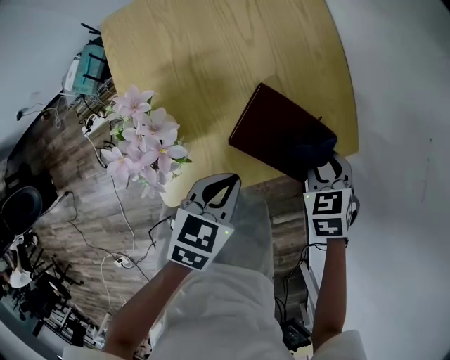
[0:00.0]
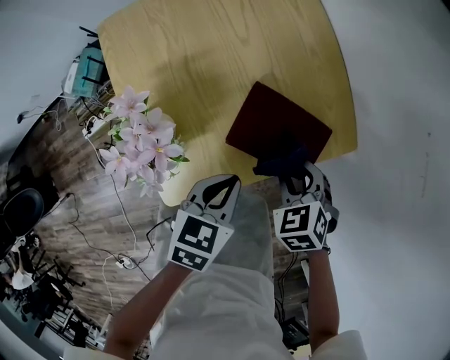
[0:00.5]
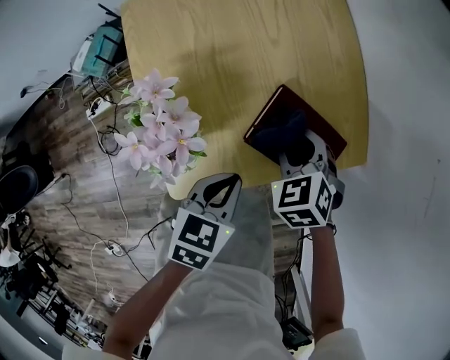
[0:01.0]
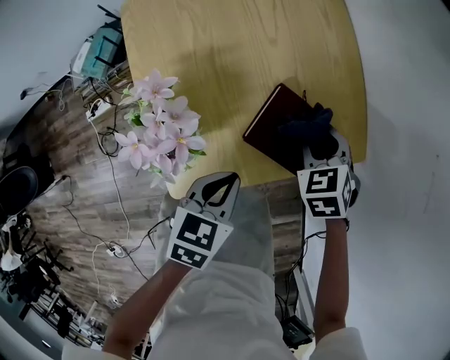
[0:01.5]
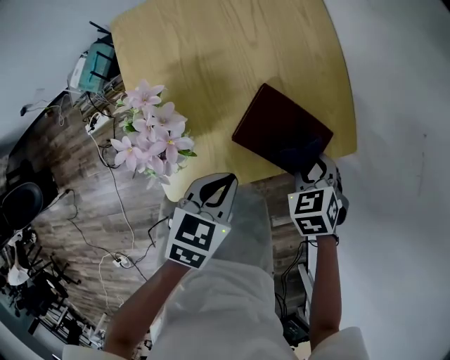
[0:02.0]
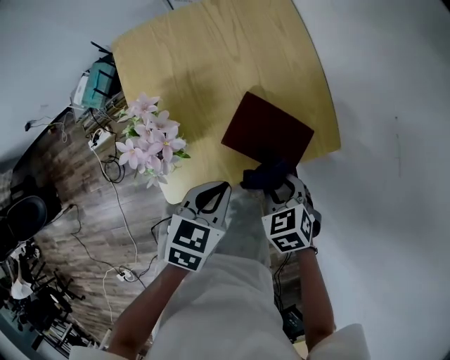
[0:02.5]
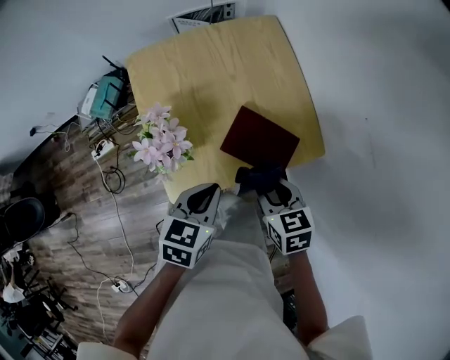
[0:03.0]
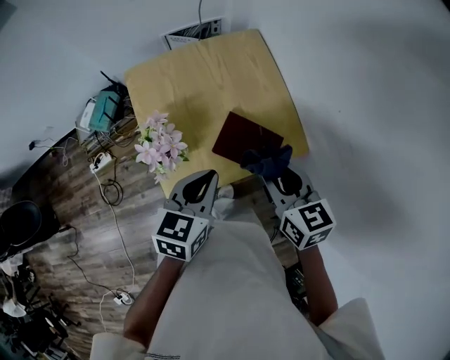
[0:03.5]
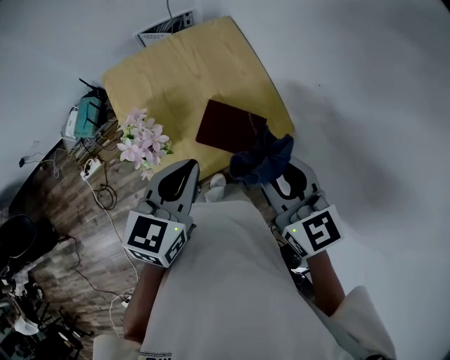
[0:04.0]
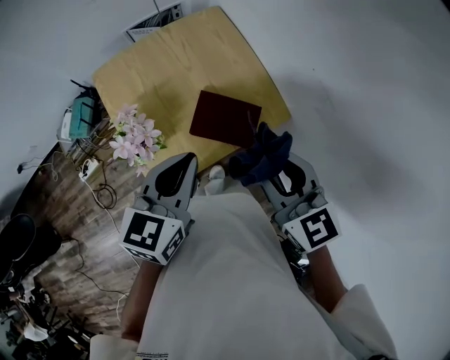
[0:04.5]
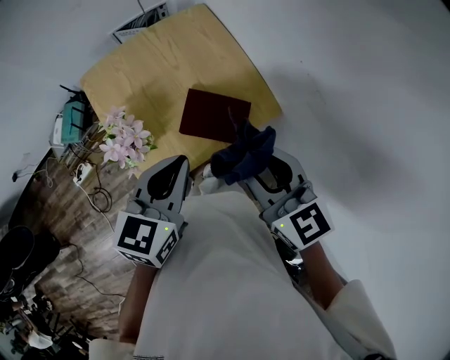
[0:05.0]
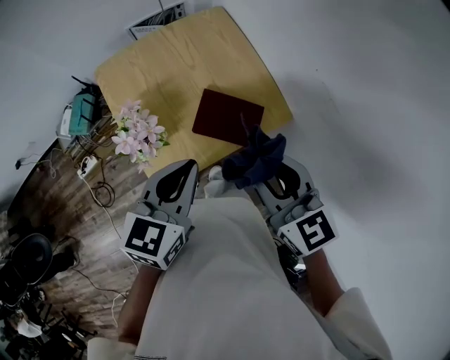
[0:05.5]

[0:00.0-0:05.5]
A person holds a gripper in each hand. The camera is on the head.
0:00.0 to 0:02.0: The right gripper reaches about 15 cm to the left, then returns.
0:02.0 to 0:03.5: Both grippers travel together upward, some 20 cm. The right gripper tips its fingers upward by approximately 40 degrees.
0:03.5 to 0:05.5: The left gripper moves some 5 cm. Meanwhile the right gripper shifts roughly 10 cm upward and backward.

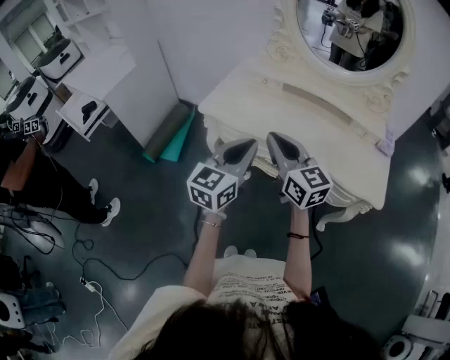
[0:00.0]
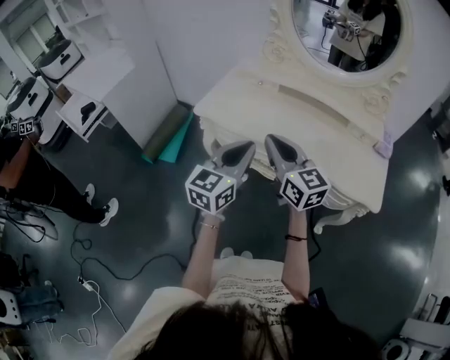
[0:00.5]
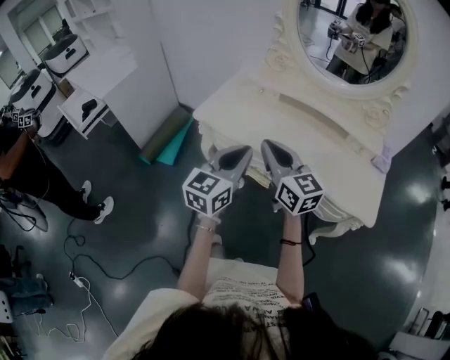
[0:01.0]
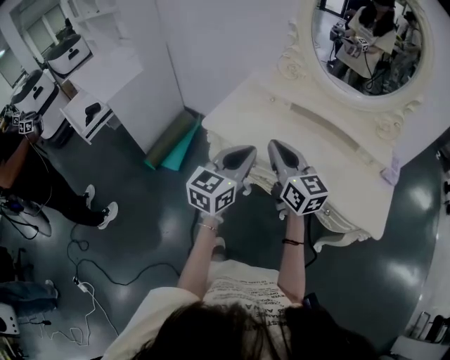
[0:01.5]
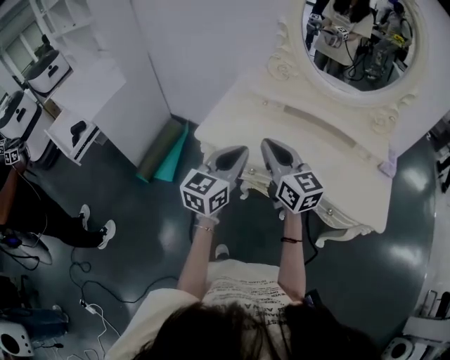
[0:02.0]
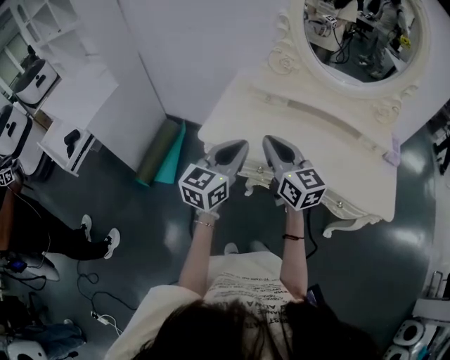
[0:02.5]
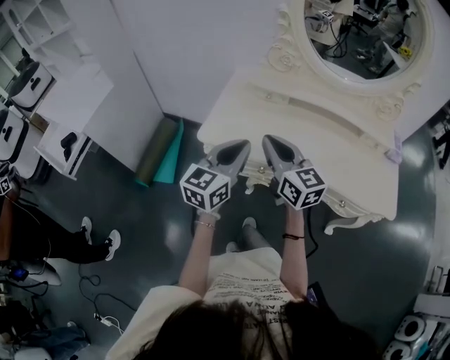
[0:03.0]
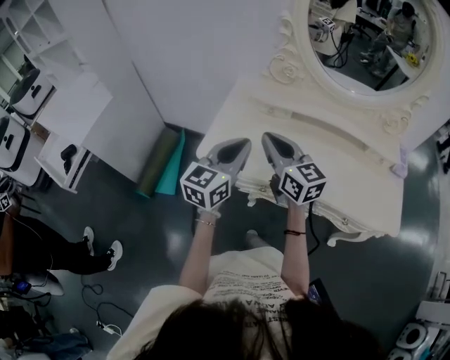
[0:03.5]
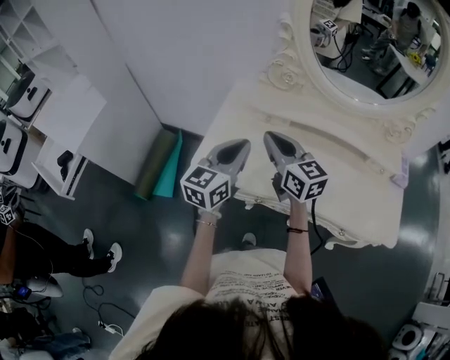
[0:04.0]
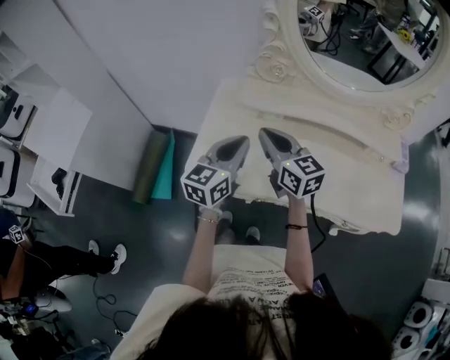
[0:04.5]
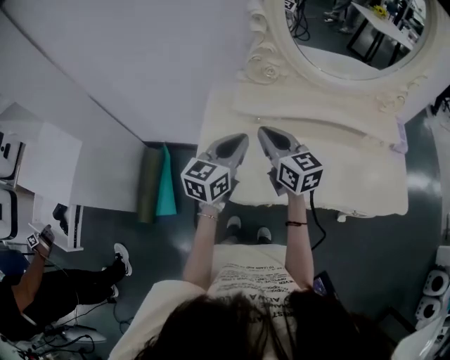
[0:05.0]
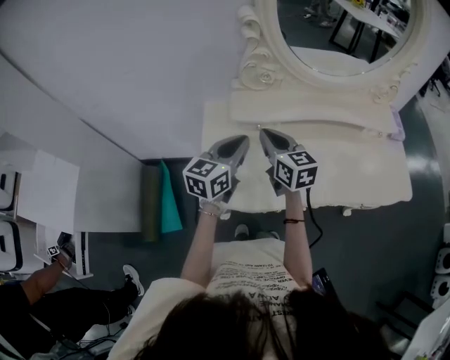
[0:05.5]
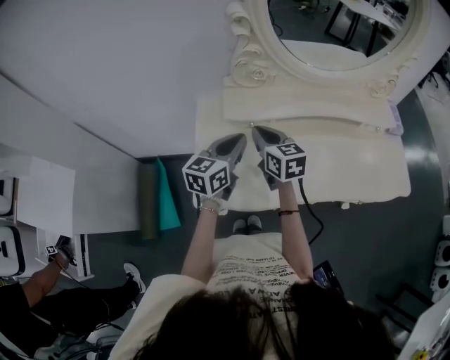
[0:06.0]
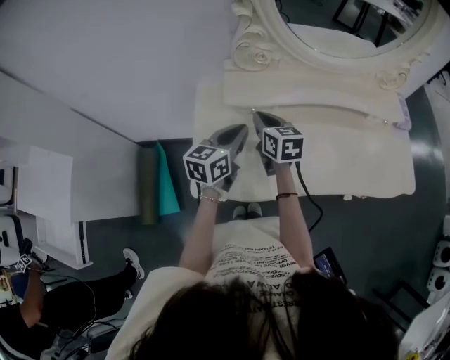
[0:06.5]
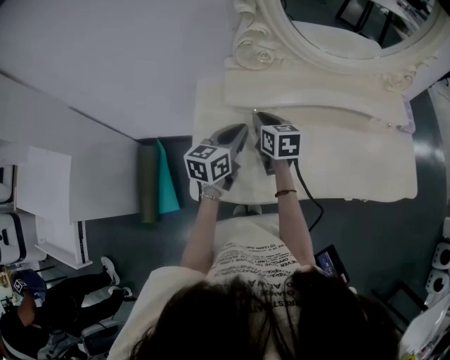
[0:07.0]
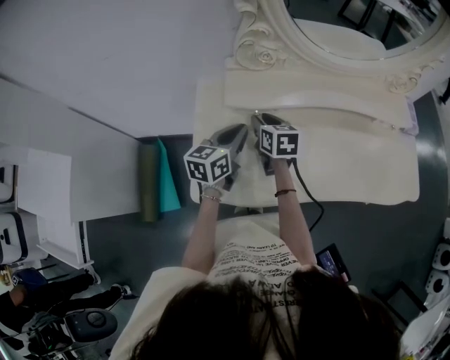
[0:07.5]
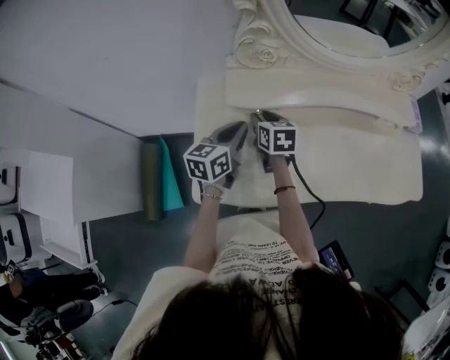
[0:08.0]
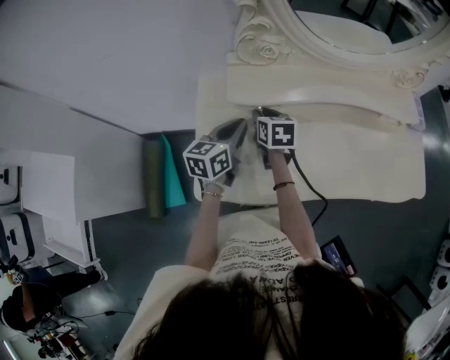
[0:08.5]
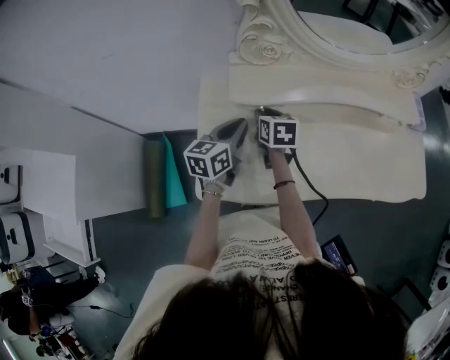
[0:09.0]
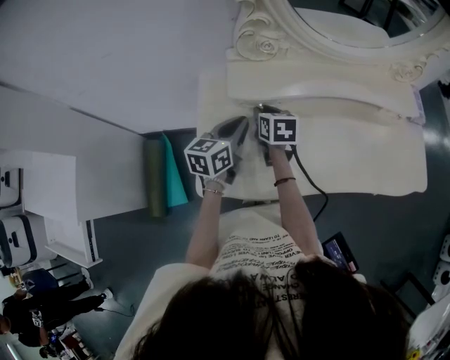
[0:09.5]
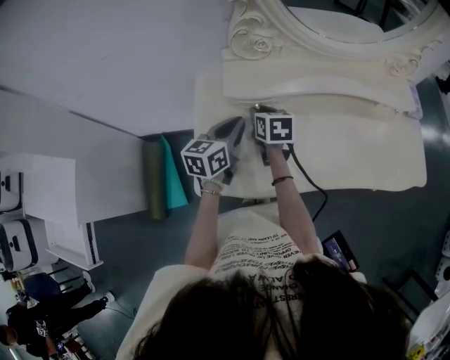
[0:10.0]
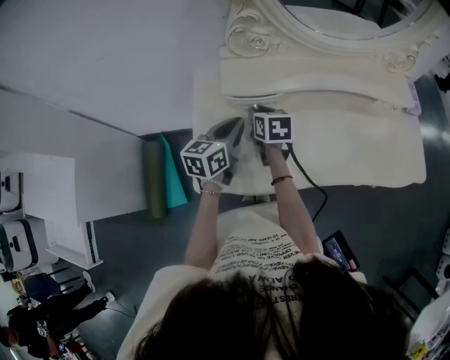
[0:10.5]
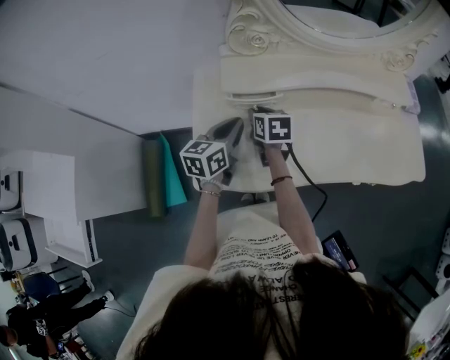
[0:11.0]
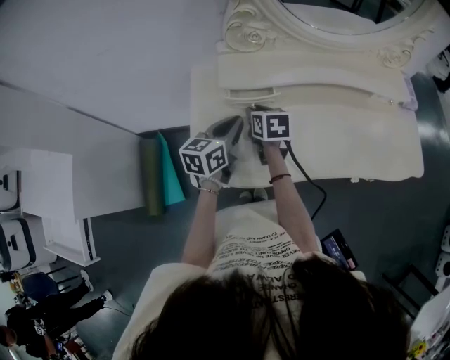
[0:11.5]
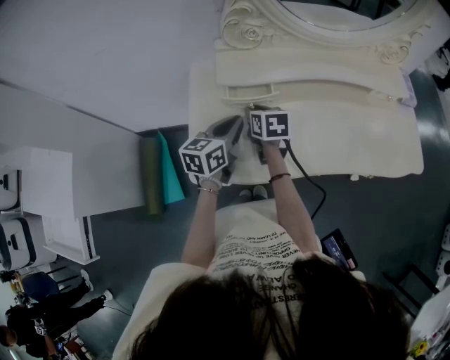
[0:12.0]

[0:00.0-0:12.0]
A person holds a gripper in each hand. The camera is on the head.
0:00.0 to 0:02.0: Both grippers move forward, roughly 10 cm.
0:02.0 to 0:04.0: Both grippers travel together forward, roughly 20 cm.
0:04.0 to 0:06.0: The grippers both shift forward and downward by some 15 cm. The right gripper swivels about 30 degrees; the left gripper turns by some 20 degrees.
0:06.0 to 0:08.0: The left gripper moves downward, approximately 5 cm. Meanwhile the right gripper shifts approximately 10 cm downward and forward, and opens up.
0:08.0 to 0:12.0: The grippers move only a little.

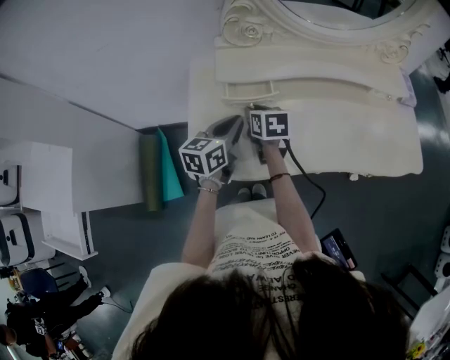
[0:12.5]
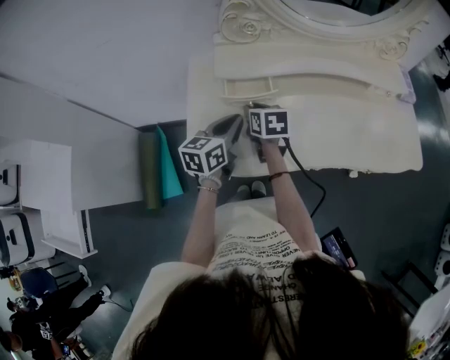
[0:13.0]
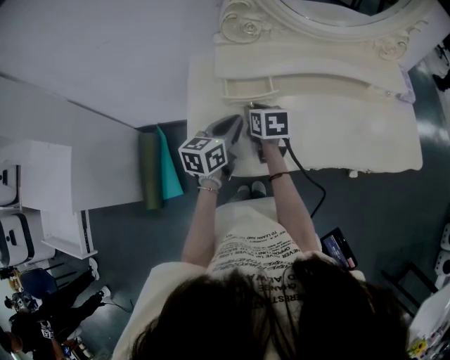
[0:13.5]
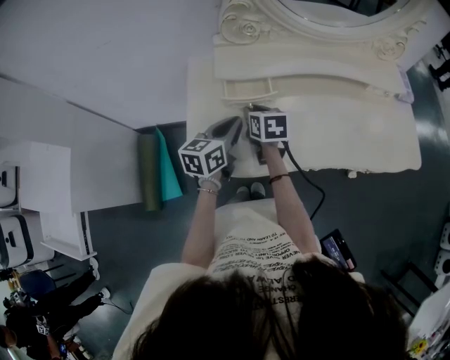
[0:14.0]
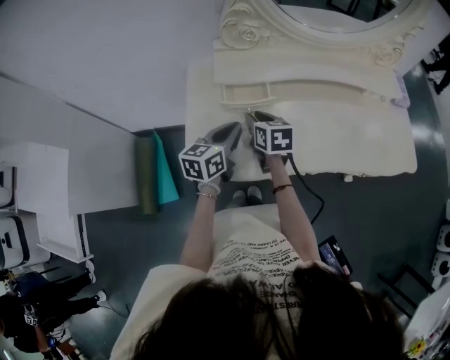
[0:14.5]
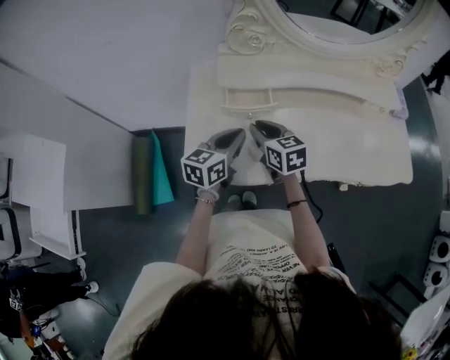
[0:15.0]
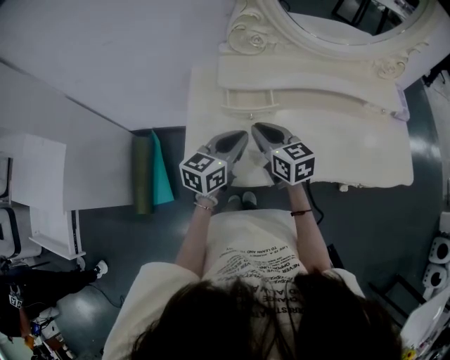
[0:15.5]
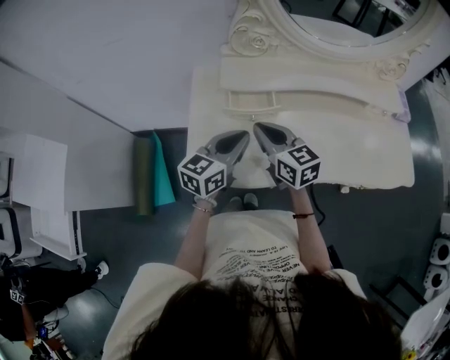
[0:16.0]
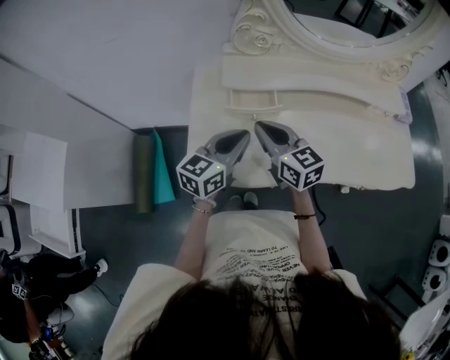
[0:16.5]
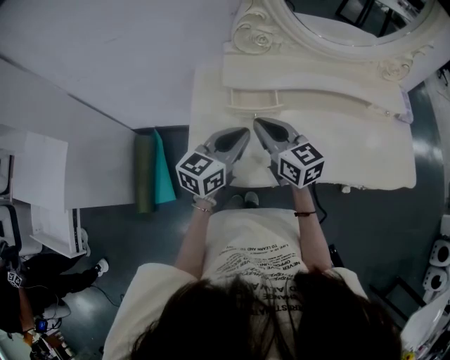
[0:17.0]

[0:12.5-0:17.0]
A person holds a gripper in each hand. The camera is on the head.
0:12.5 to 0:14.5: The grippers move only a little.
0:14.5 to 0:17.0: The right gripper shifts approximately 10 cm upward, swivels roughly 30 degrees, and closes. The left gripper travels upward by about 5 cm.

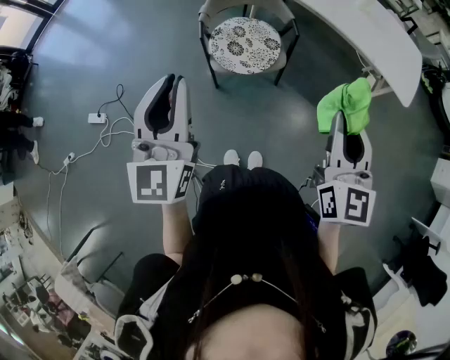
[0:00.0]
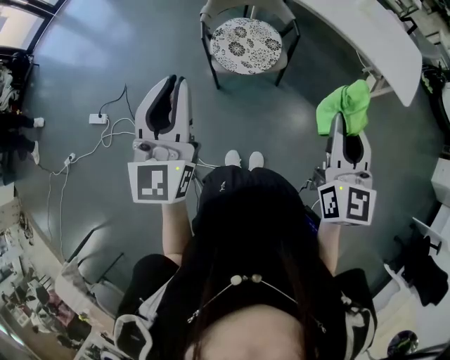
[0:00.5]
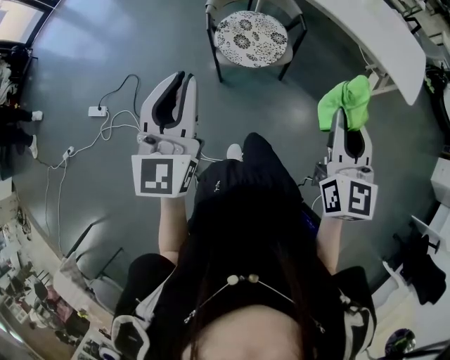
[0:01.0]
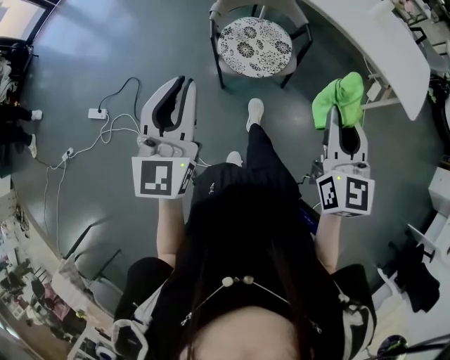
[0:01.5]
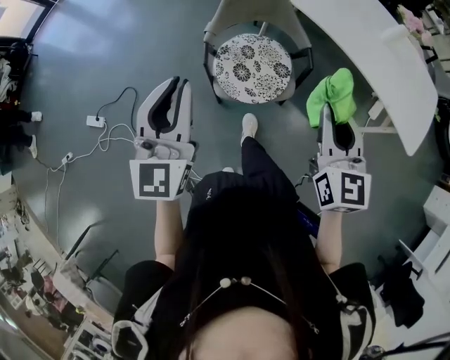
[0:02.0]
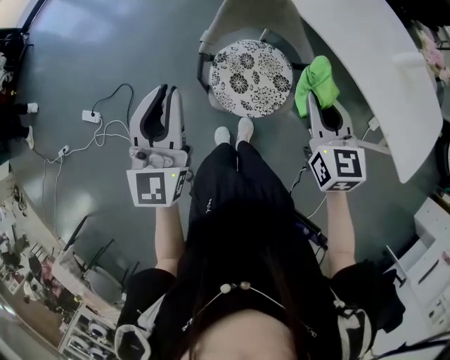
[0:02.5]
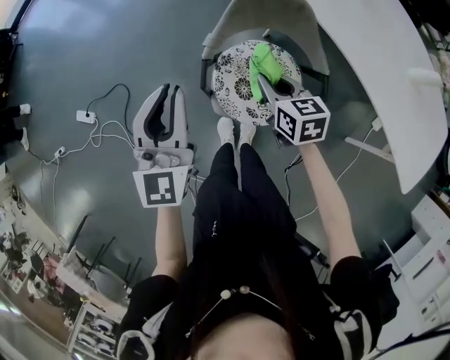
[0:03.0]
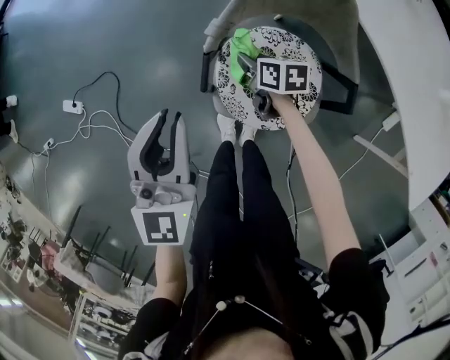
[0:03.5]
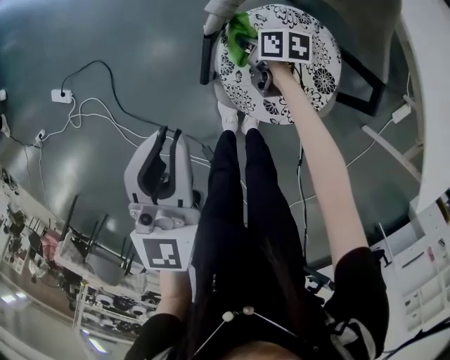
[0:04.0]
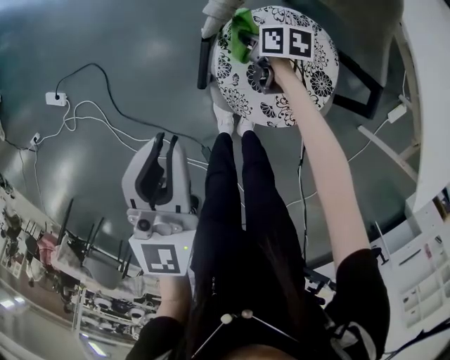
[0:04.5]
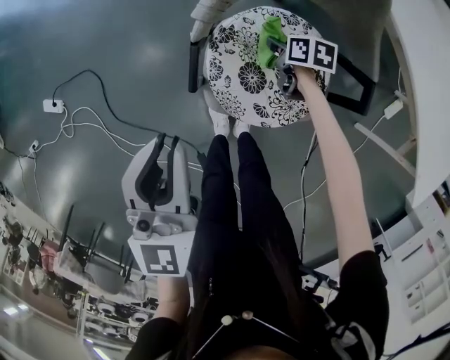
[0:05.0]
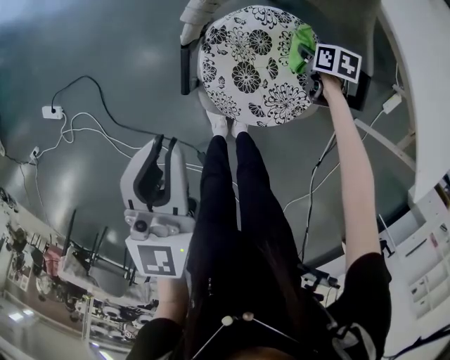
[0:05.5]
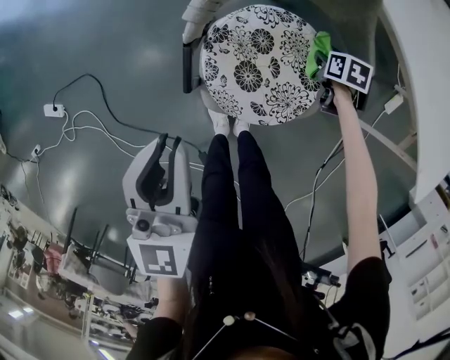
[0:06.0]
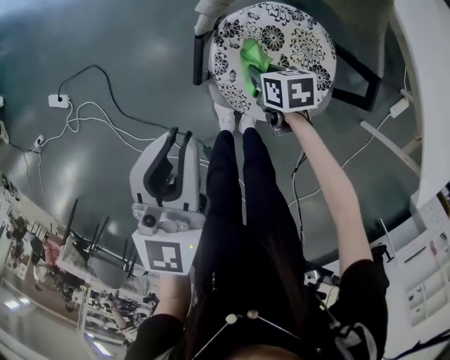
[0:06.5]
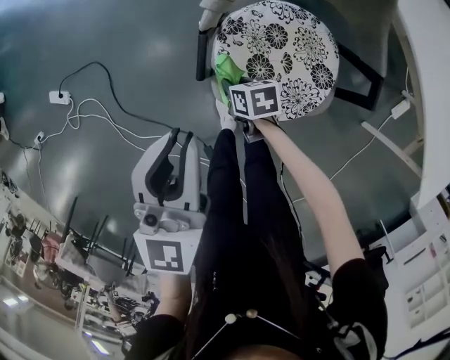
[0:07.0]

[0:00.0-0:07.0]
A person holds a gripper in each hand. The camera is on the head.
0:00.0 to 0:02.0: The two grippers go approximately 20 cm forward.
0:02.0 to 0:03.5: The left gripper is displaced downward by approximately 20 cm. The right gripper moves downward, roughly 40 cm, and tilts its fingers approximately 30 degrees downward.
0:03.5 to 0:05.0: The right gripper moves downward and to the right, approximately 15 cm; the left gripper shifts roughly 5 cm downward.
0:05.0 to 0:07.0: The right gripper changes place by roughly 20 cm.
